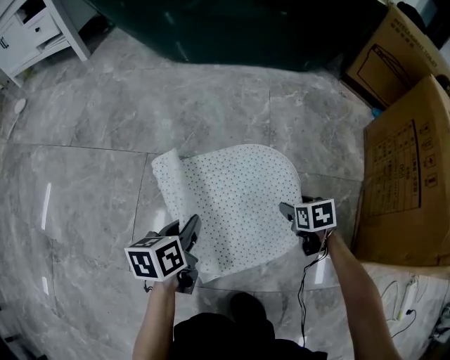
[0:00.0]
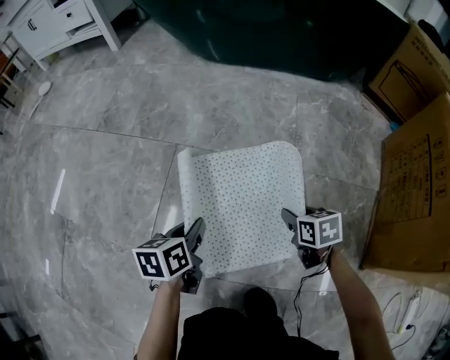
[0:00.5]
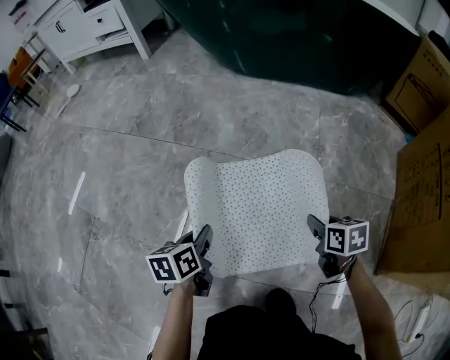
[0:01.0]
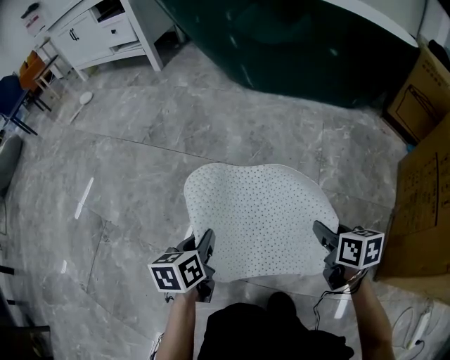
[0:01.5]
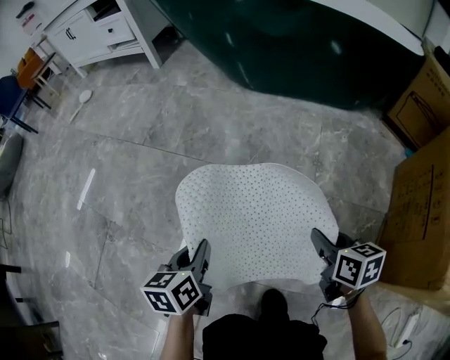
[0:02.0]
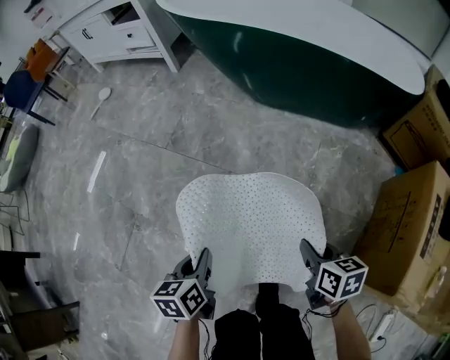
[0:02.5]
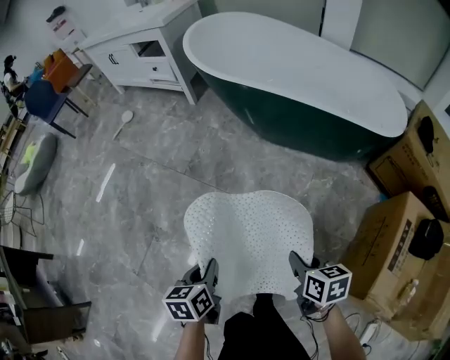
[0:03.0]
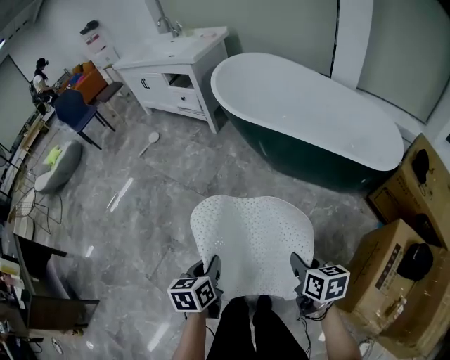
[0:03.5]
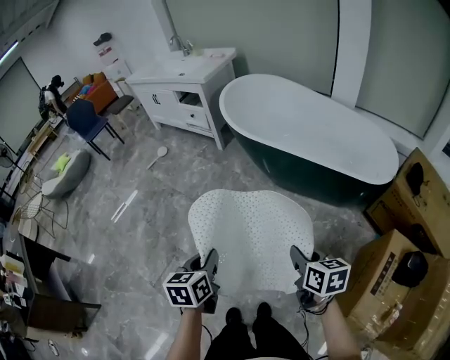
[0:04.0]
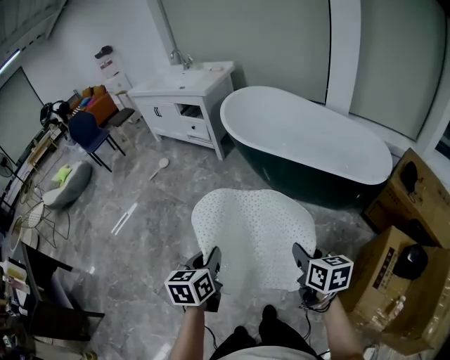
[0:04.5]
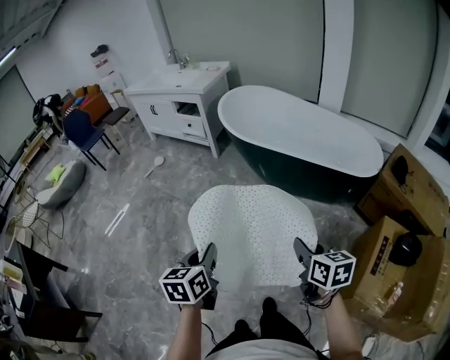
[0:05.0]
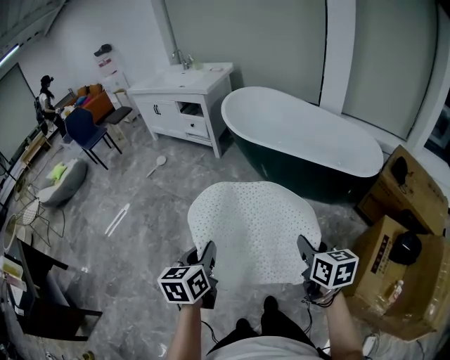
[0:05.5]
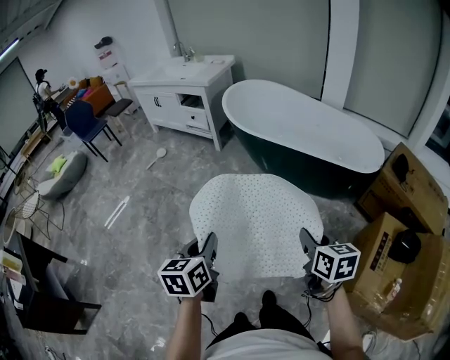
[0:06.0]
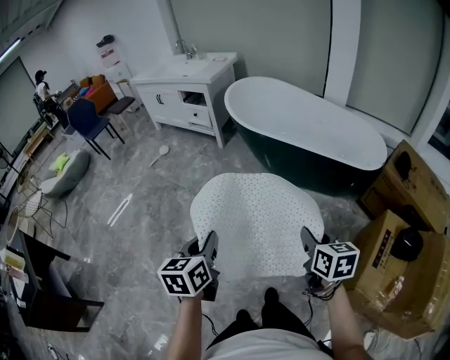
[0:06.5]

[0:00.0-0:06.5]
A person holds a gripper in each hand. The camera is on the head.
0:00.0 to 0:02.0: The right gripper heads upward and to the left, covering roughly 30 cm, turns by approximately 30 degrees, and closes its fingers, while the left gripper is displaced upward, to the left and backward by roughly 20 cm.
0:02.0 to 0:04.5: Both grippers travel together upward, about 60 cm.
0:04.5 to 0:06.5: Both grippers travel together backward, approximately 5 cm.

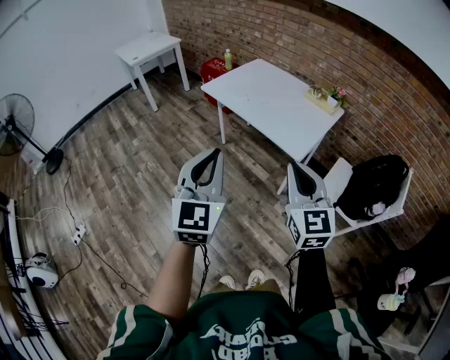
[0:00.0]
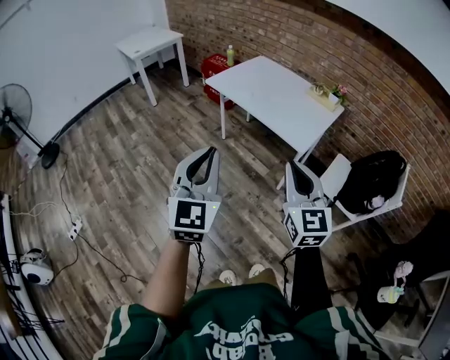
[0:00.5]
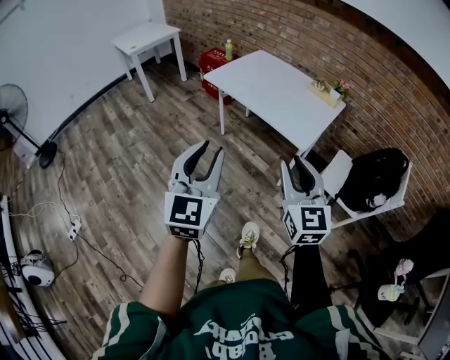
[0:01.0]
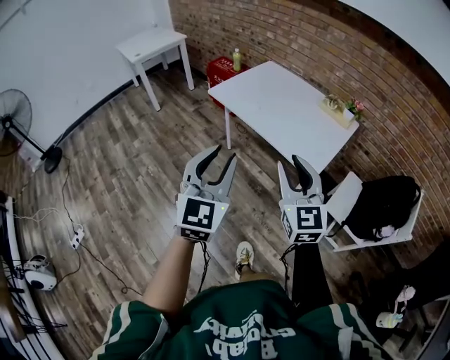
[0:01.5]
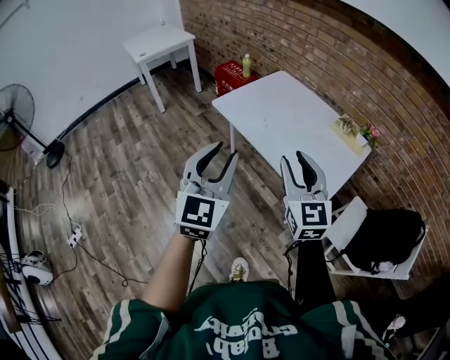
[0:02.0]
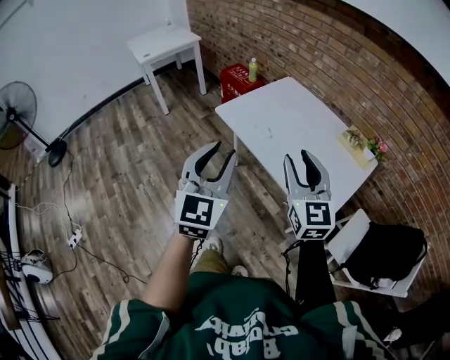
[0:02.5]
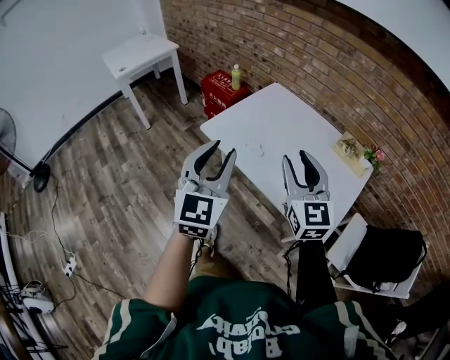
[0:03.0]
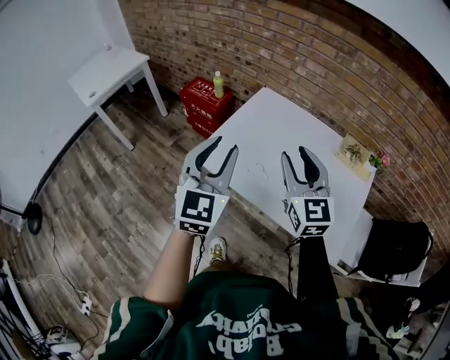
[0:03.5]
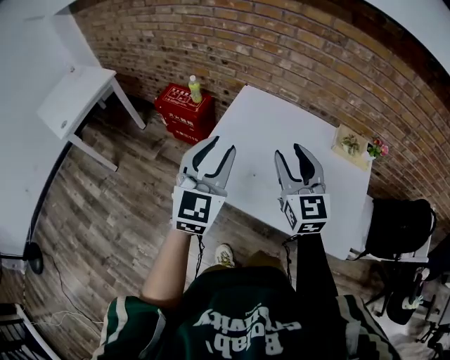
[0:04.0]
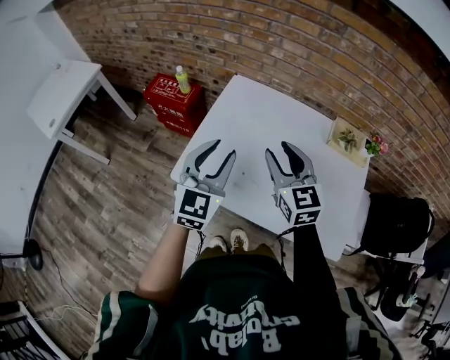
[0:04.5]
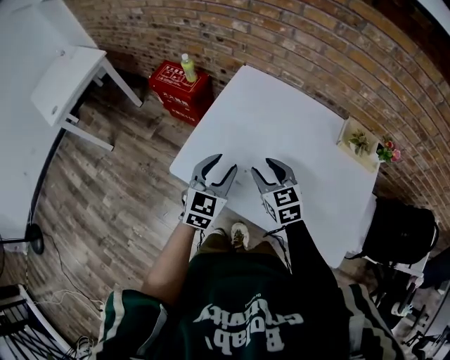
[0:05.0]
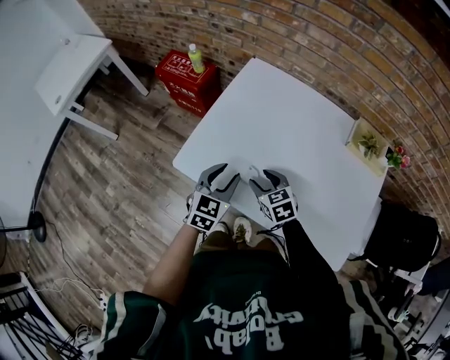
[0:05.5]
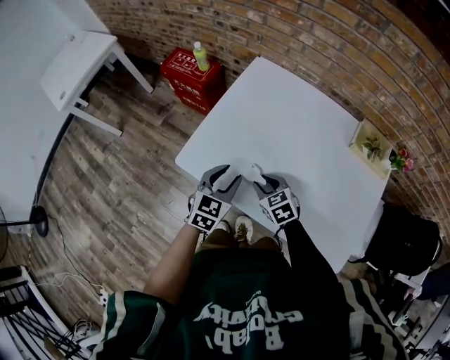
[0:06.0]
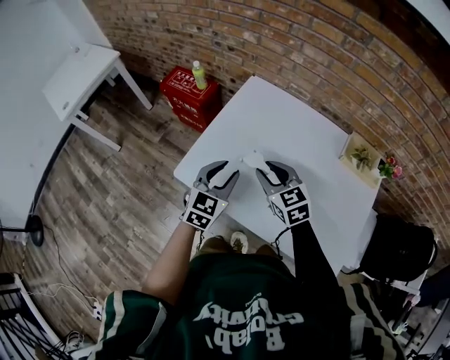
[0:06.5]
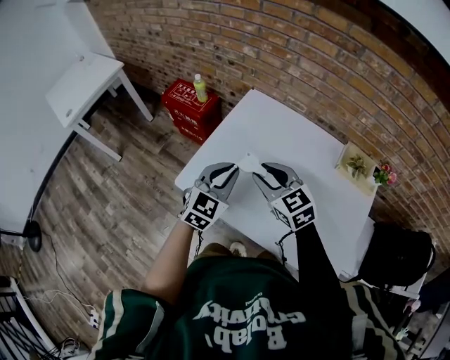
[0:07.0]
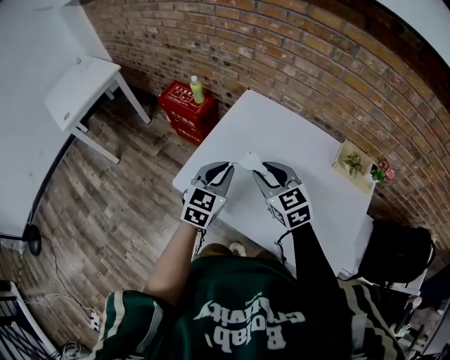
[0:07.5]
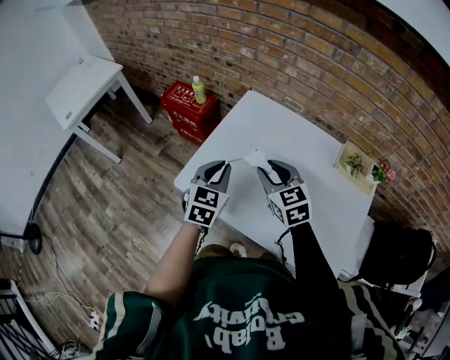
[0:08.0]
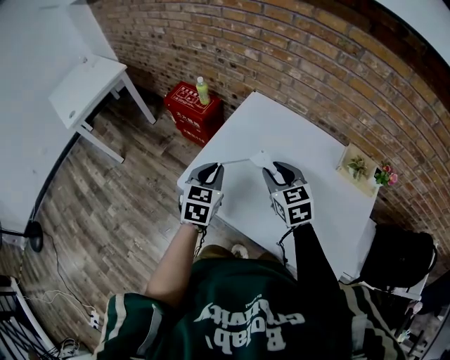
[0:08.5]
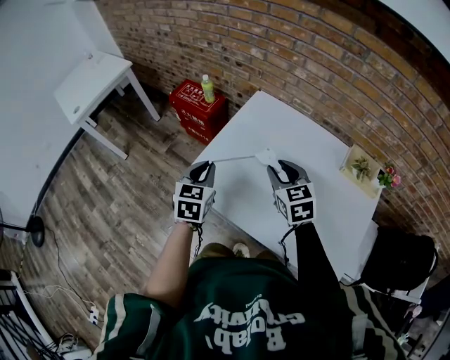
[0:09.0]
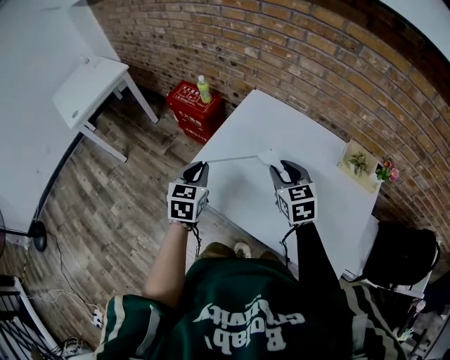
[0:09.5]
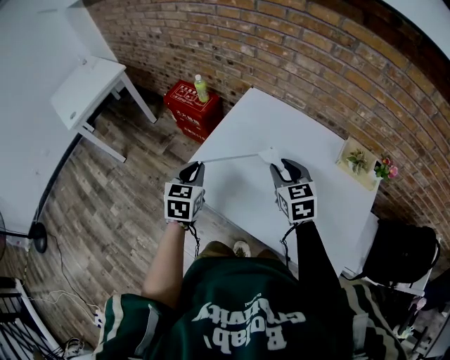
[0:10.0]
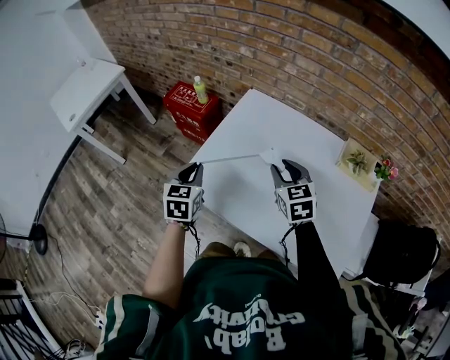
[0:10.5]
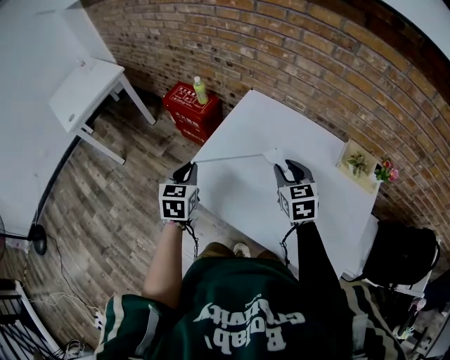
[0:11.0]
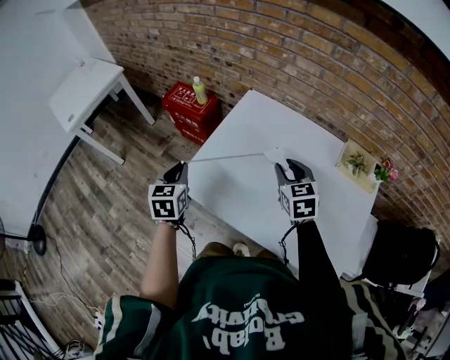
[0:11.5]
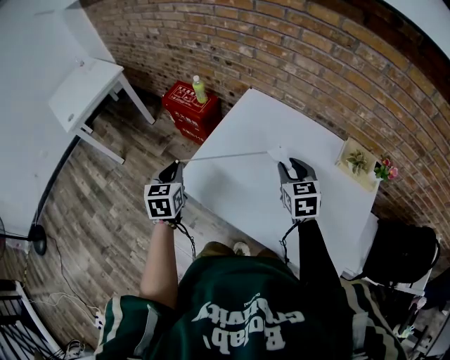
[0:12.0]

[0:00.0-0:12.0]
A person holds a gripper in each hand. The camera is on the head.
0:00.0 to 0:02.0: The grippers both shift forward by roughly 30 cm. The right gripper opens up; the left gripper opens its fingers.
0:02.0 to 0:04.0: The pair of grippers is taken approximately 50 cm. The left gripper changes its angle by about 30 degrees, while the right gripper rotates approximately 20 degrees.
0:04.0 to 0:06.0: Both grippers travel together downward, roughly 30 cm. The left gripper swivels roughly 30 degrees; the right gripper points its fingers roughly 40 degrees further downward.
0:06.0 to 0:08.0: The right gripper shifts roughly 20 cm upward, and changes its angle by about 20 degrees, while the left gripper heads upward and forward, covering some 10 cm, and closes its fingers.
0:08.0 to 0:10.0: The left gripper goes about 10 cm to the left.
0:10.0 to 0:12.0: The left gripper is displaced to the left by roughly 5 cm.

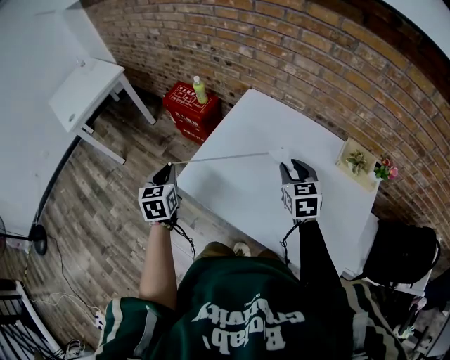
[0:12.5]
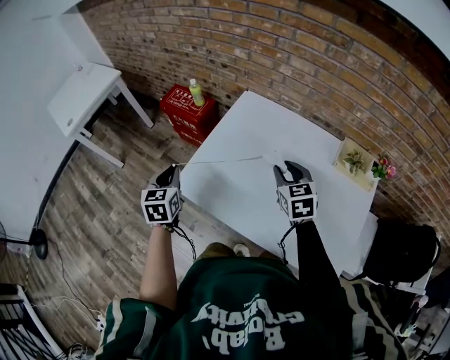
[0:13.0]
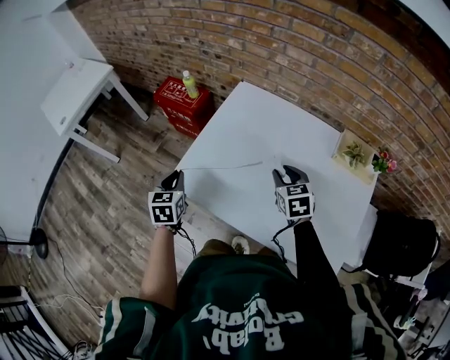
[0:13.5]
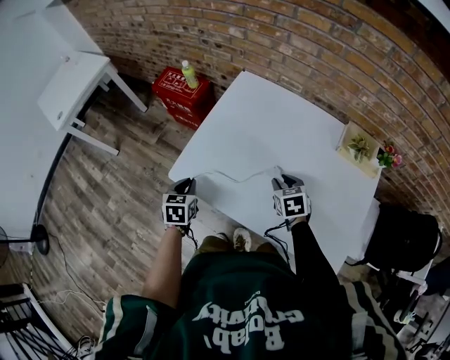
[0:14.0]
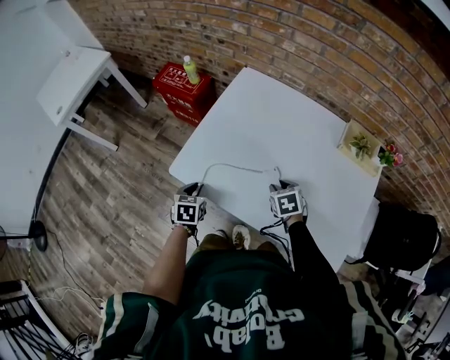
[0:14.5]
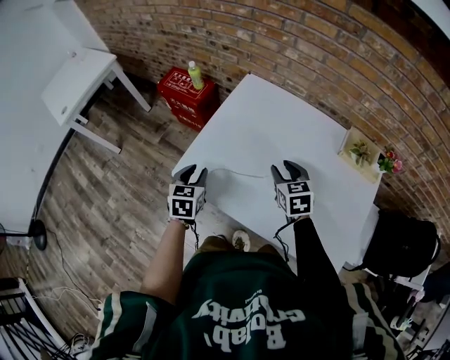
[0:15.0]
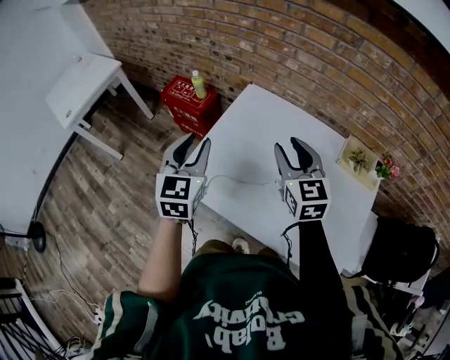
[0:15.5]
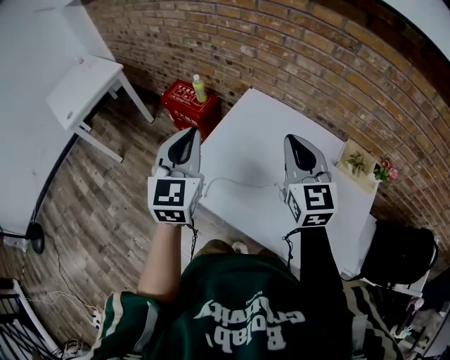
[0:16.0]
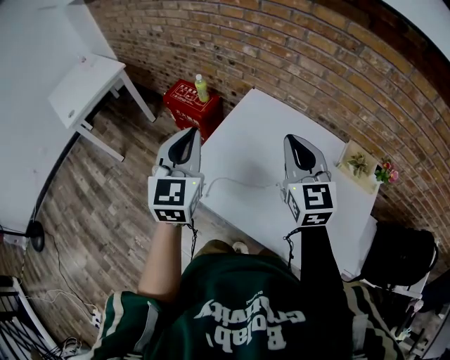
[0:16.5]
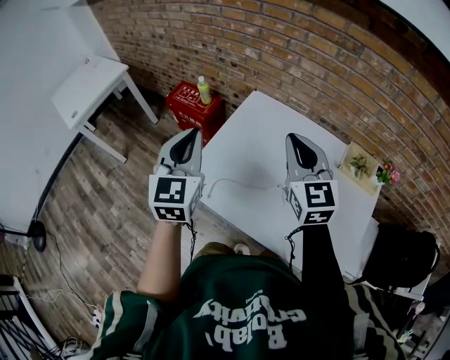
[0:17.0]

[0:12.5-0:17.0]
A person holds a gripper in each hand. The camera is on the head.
0:12.5 to 0:14.5: The left gripper moves downward and to the right, approximately 20 cm, and rotates about 30 degrees. The right gripper is displaced downward by roughly 20 cm, and turns by approximately 30 degrees.
0:14.5 to 0:17.0: The grippers both shift upward by roughly 35 cm. The right gripper tilts its fingers about 50 degrees upward, and closes up. The left gripper points its fingers some 40 degrees further upward.

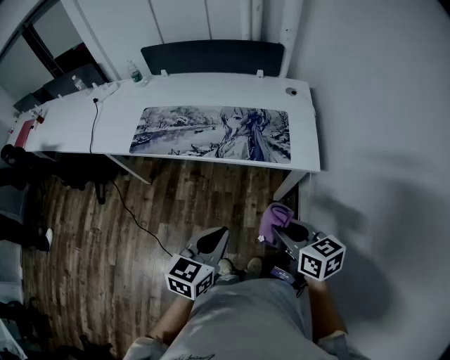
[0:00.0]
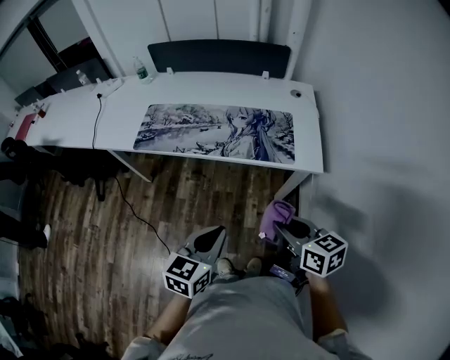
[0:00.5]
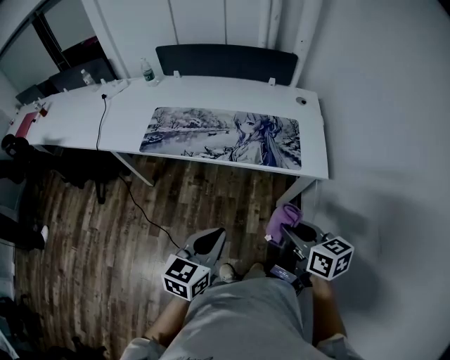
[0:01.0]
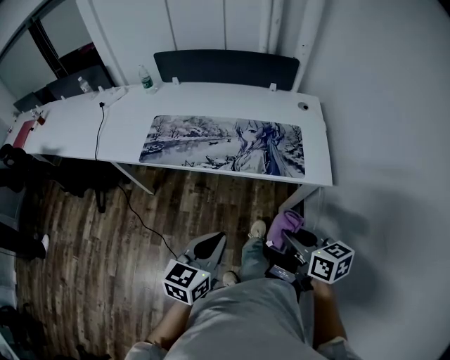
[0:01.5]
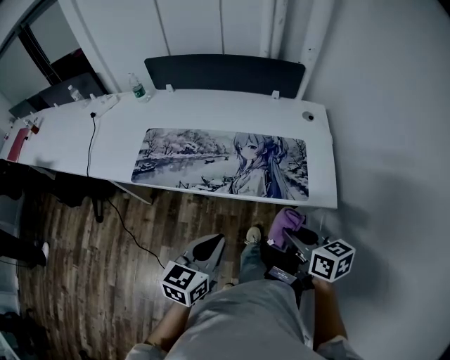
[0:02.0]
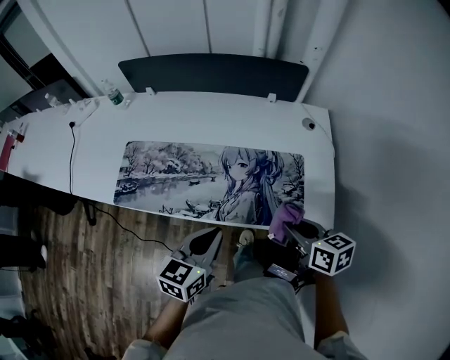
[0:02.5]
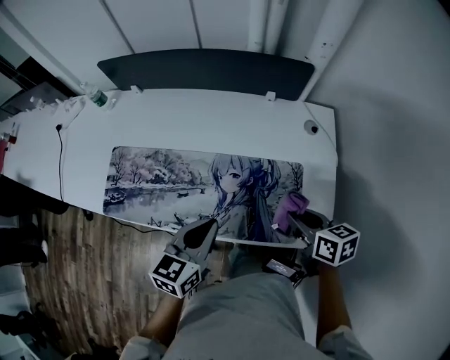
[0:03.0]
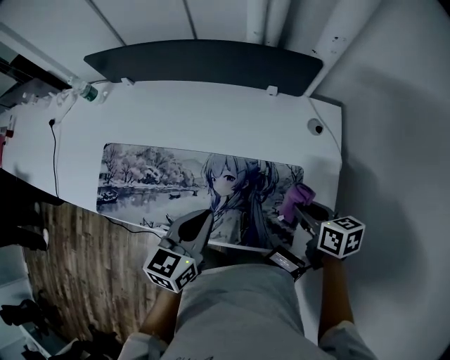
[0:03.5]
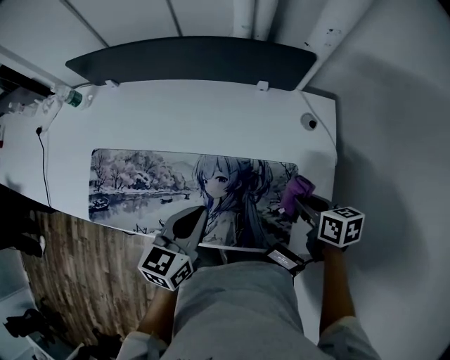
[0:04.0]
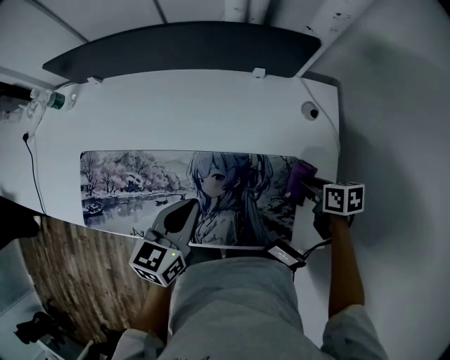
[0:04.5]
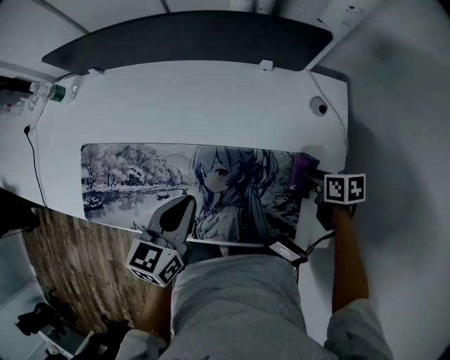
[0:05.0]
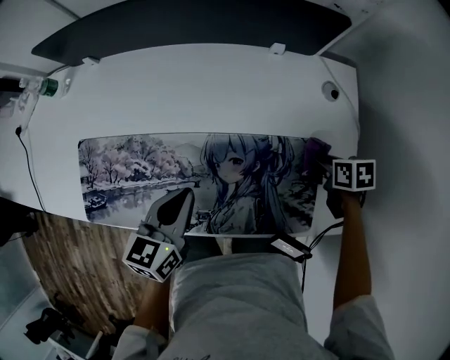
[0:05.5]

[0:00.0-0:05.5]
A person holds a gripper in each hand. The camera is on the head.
0:00.0 to 0:02.0: The left gripper travels forward and to the left by some 15 cm, while the right gripper is displaced forward by some 15 cm.
0:02.0 to 0:03.5: The left gripper moves forward, approximately 30 cm, while the right gripper is displaced forward and to the right by roughly 35 cm.
0:03.5 to 0:05.5: The right gripper is displaced downward and forward by about 15 cm, and turns by roughly 30 degrees; the left gripper is displaced to the left, downward and forward by some 10 cm.
